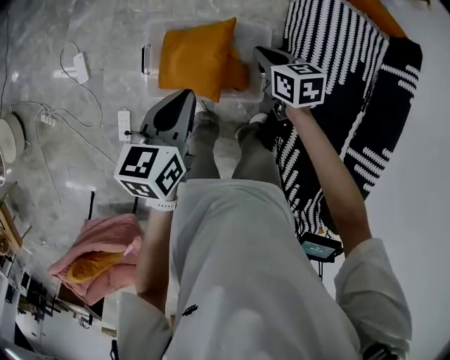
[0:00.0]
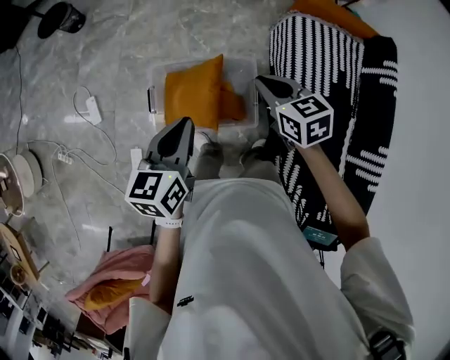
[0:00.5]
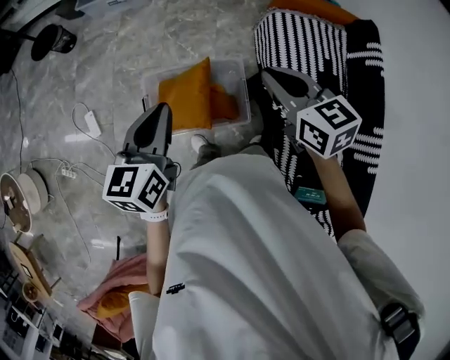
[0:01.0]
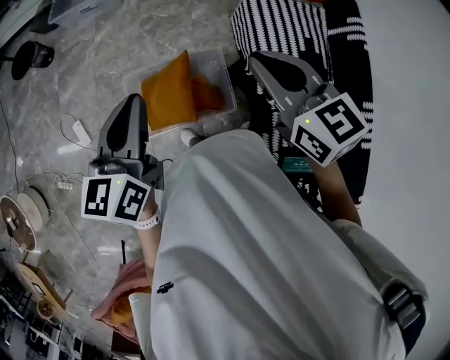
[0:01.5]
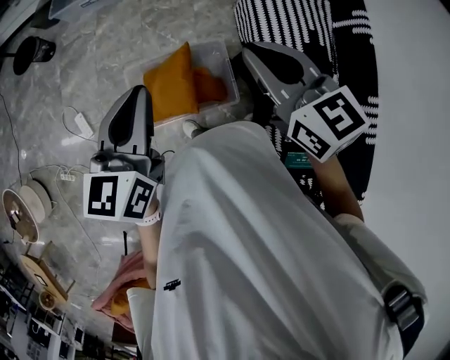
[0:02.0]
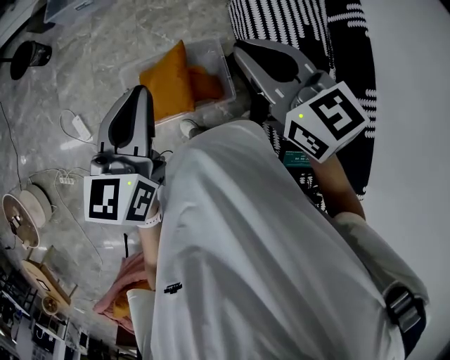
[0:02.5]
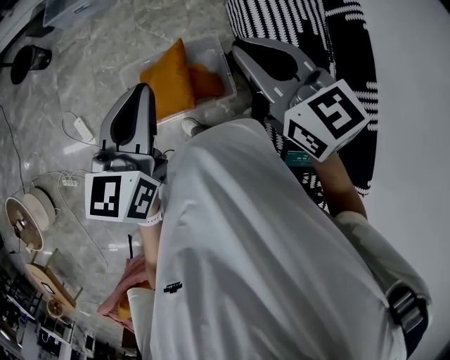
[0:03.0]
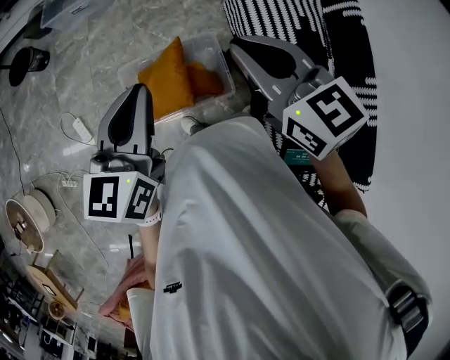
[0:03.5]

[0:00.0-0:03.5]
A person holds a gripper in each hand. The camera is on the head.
0:00.0 to 0:02.0: The left gripper goes about 25 cm upward, and turns by about 20 degrees. The right gripper is displaced upward by roughly 35 cm, and swivels approximately 30 degrees.
0:02.0 to 0:03.5: The right gripper is displaced backward by some 5 cm.

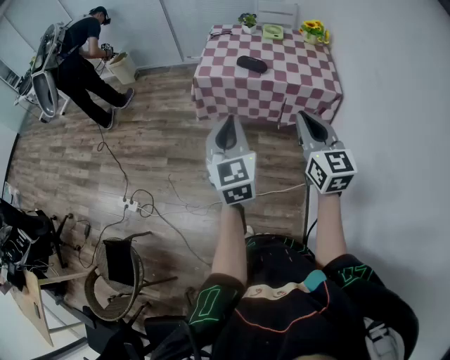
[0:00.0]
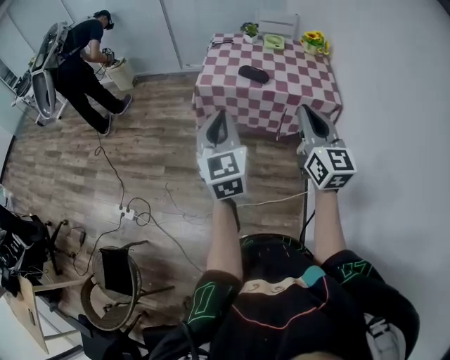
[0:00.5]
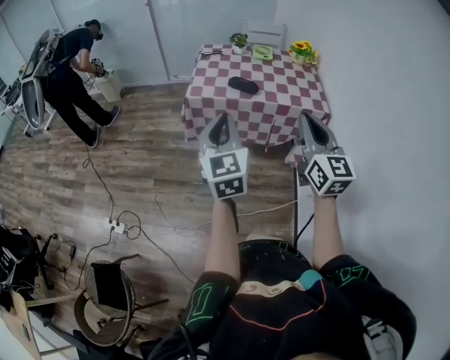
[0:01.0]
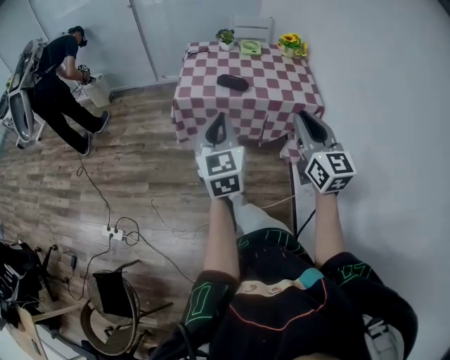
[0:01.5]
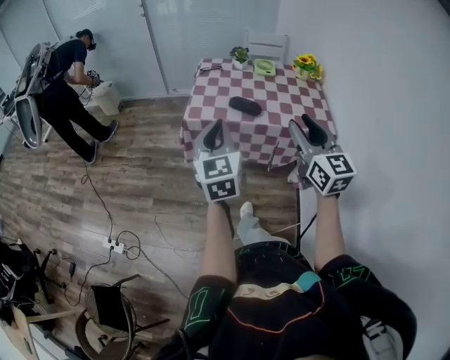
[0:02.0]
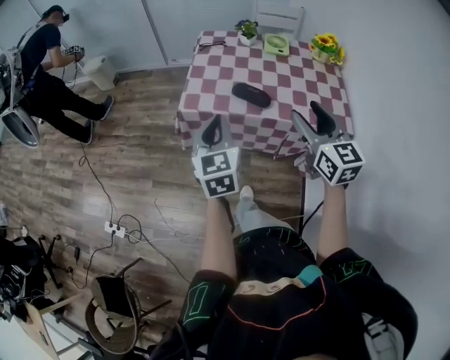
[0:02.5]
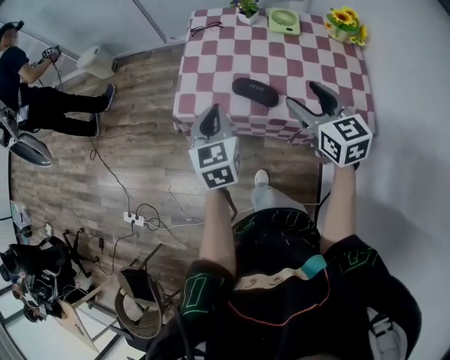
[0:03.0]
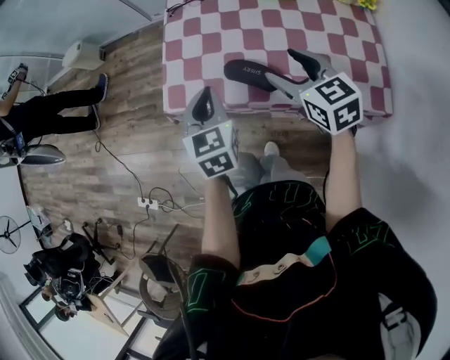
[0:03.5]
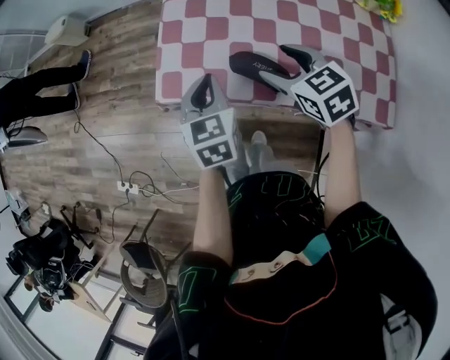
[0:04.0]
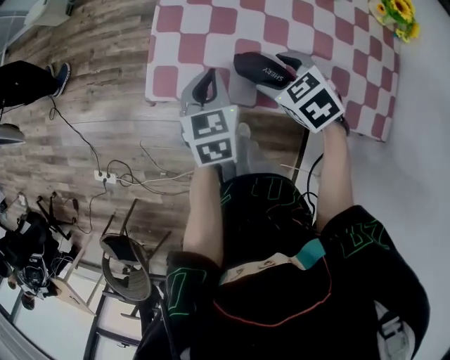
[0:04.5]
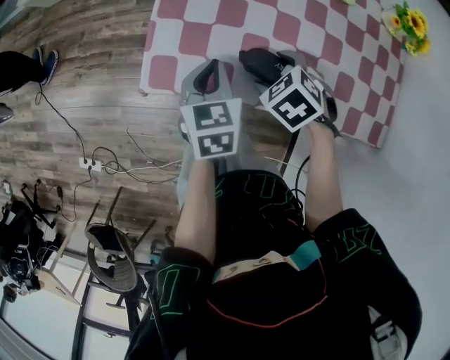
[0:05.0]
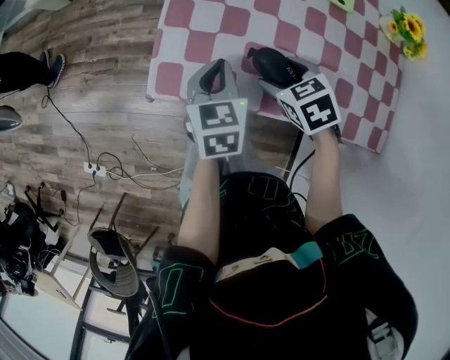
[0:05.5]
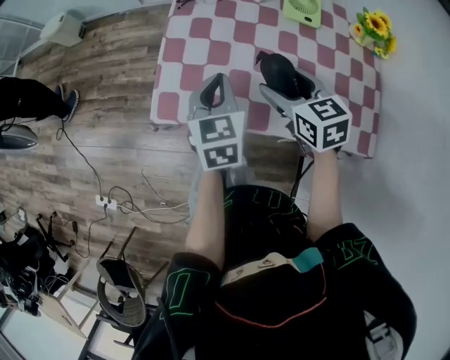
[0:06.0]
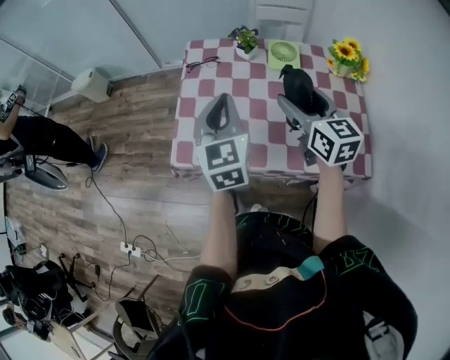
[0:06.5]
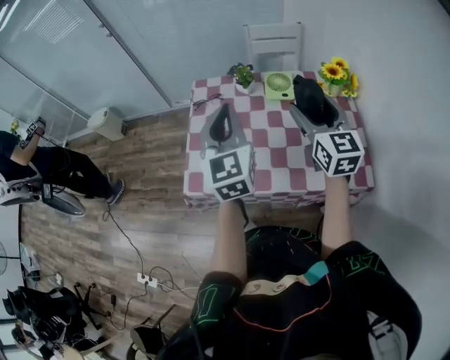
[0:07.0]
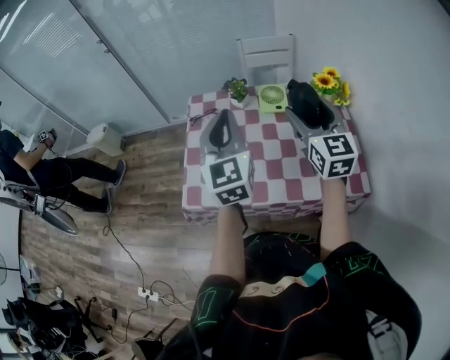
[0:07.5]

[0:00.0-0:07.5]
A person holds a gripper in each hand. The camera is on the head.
0:00.0 to 0:02.0: The two grippers go approximately 15 cm forward. The right gripper opens.
0:02.0 to 0:04.0: The grippers both shift forward and downward by some 40 cm. The left gripper changes its angle by about 30 degrees, while the right gripper tips its fingers downward by about 40 degrees, and opens.
0:04.0 to 0:05.5: The left gripper moves some 5 cm. The right gripper shifts some 10 cm downward, and turns by some 20 degrees.
0:05.5 to 0:07.5: The left gripper shifts roughly 30 cm upward, and tilts its fingers about 40 degrees upward. The right gripper is displaced upward and to the right by about 35 cm, and angles its fingers upward, by some 60 degrees.

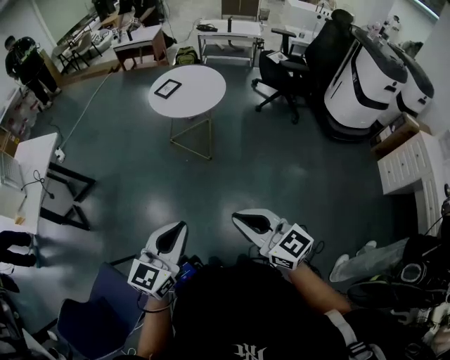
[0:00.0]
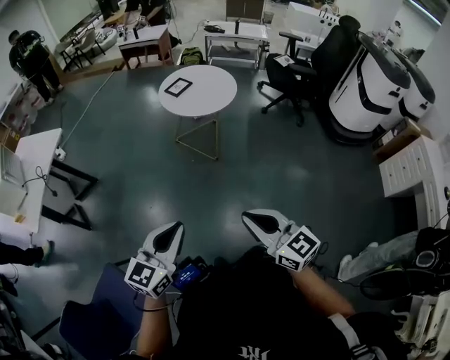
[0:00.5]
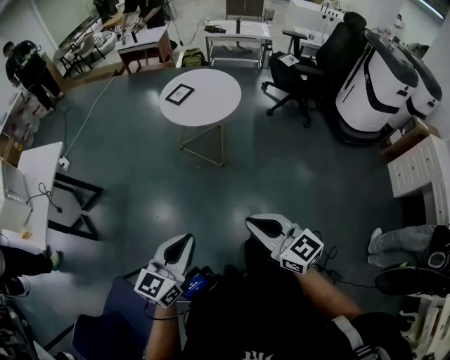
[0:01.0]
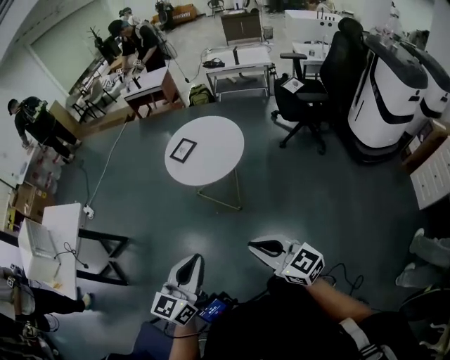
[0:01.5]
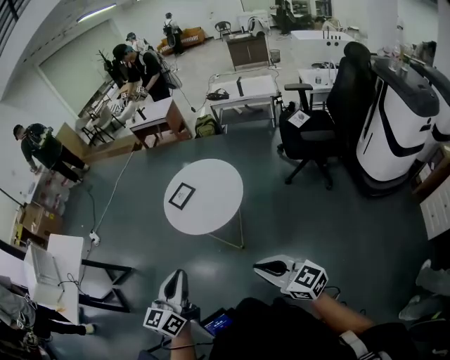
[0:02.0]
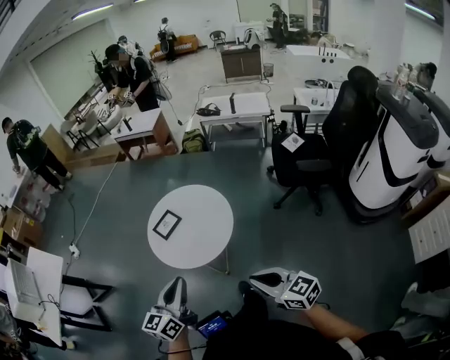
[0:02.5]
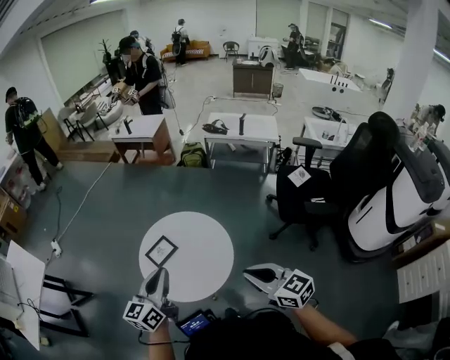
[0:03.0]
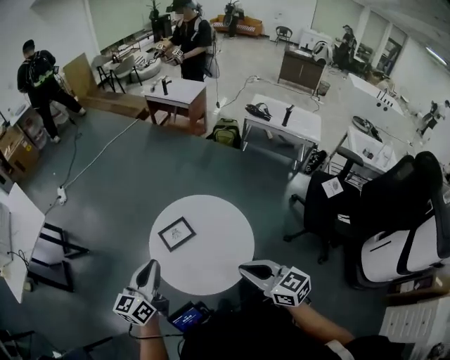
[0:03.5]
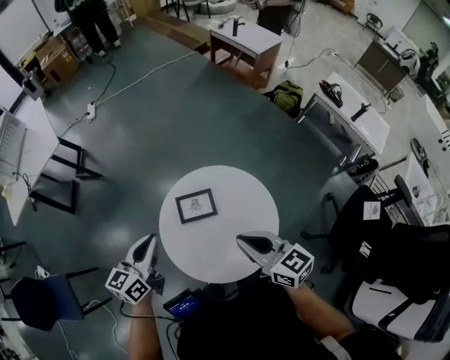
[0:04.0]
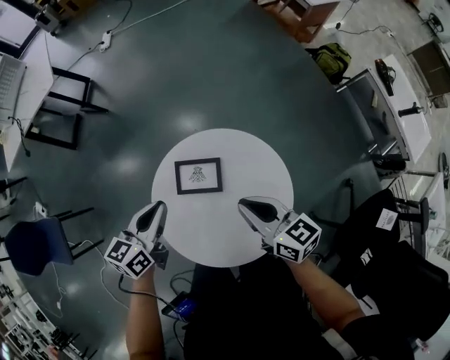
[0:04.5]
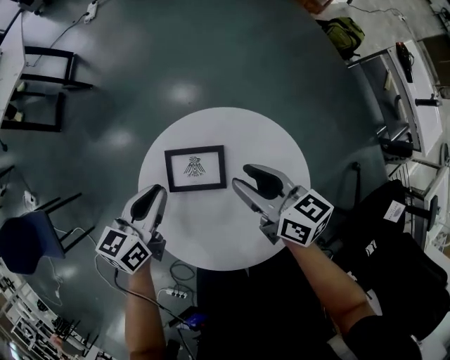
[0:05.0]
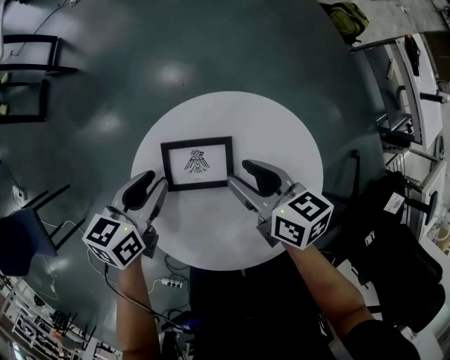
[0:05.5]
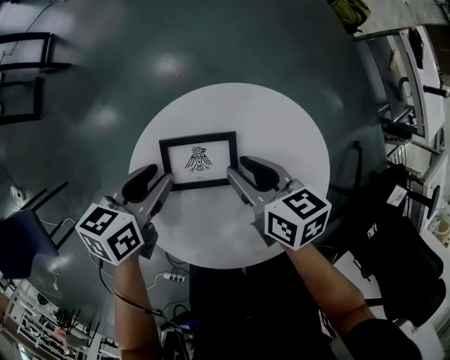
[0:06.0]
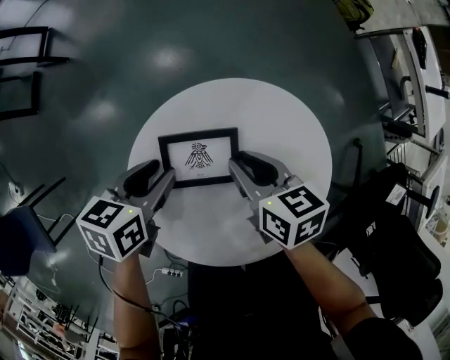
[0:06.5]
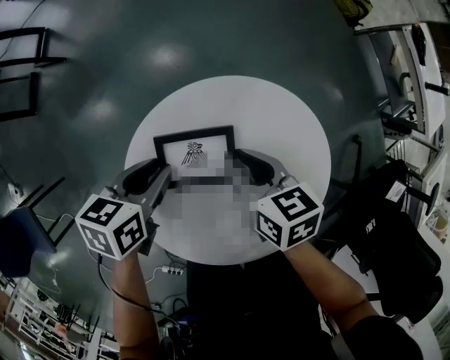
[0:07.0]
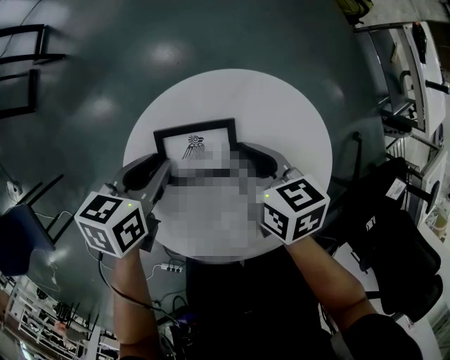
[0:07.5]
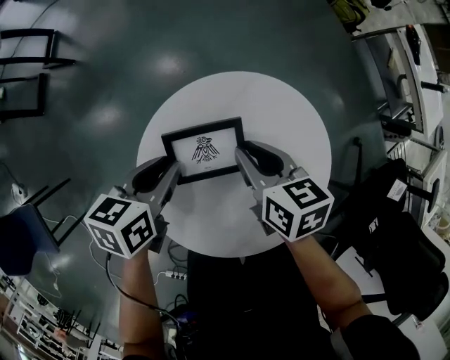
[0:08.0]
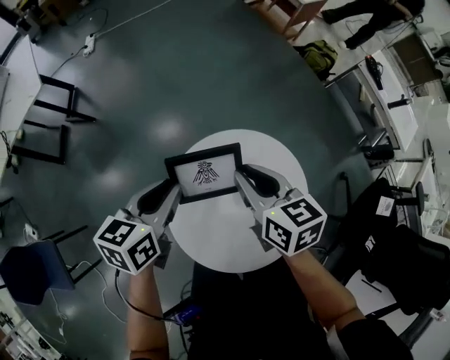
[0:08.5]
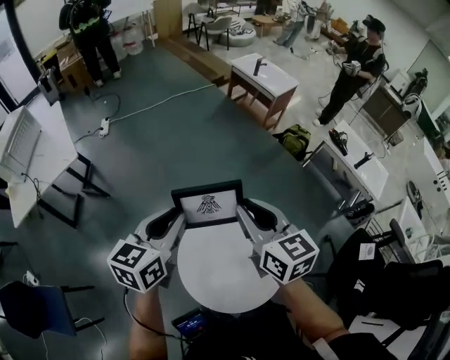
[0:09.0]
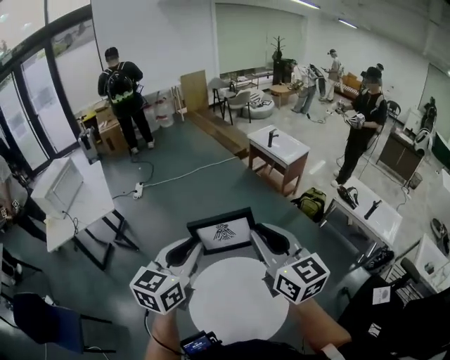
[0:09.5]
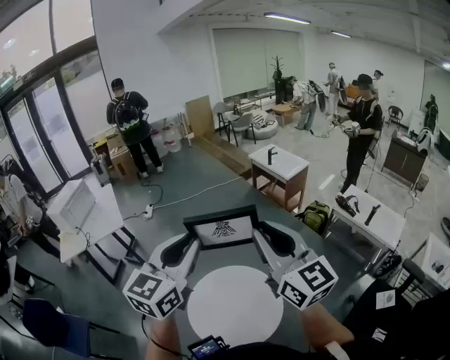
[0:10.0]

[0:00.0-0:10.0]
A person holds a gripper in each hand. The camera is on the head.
0:00.0 to 0:02.0: The right gripper heads forward and to the right, covering some 40 cm; the left gripper travels forward by approximately 40 cm.
0:02.0 to 0:04.0: Both grippers are carried about 50 cm. The left gripper changes its angle by approximately 40 degrees, while the right gripper rotates roughly 30 degrees.
0:04.0 to 0:06.0: The left gripper travels downward by about 30 cm, turns by about 30 degrees, and opens; the right gripper heads downward and forward, covering some 35 cm, changes its angle by approximately 30 degrees, and opens up.
0:06.0 to 0:08.0: The grippers stay close to where they were, moving slightly.
0:08.0 to 0:10.0: The two grippers go approximately 70 cm upward. The right gripper points its fingers some 60 degrees further upward. The left gripper tilts its fingers approximately 50 degrees upward.

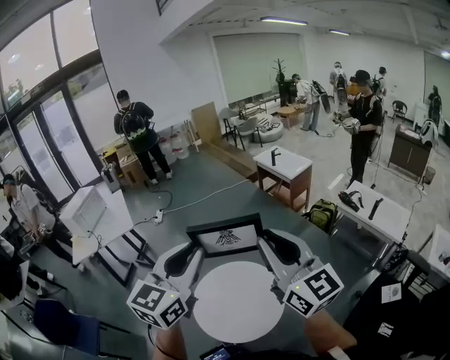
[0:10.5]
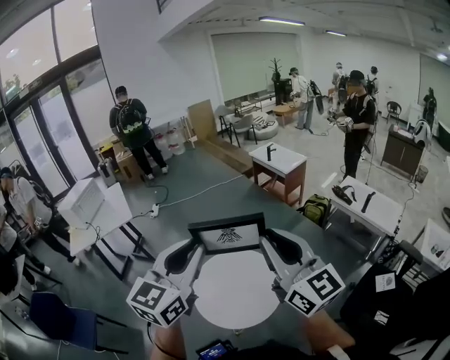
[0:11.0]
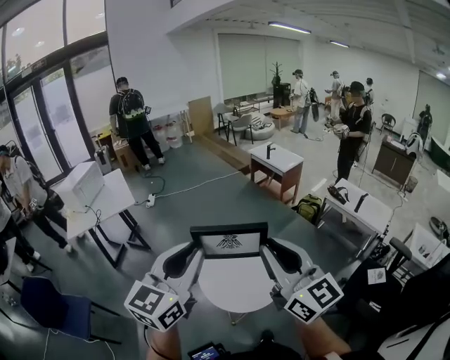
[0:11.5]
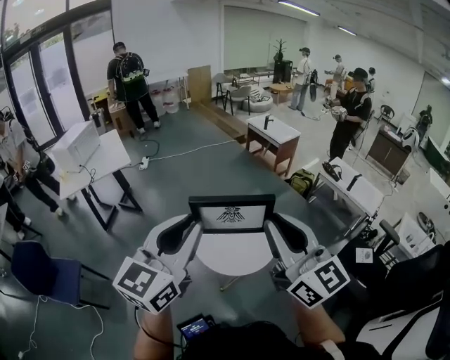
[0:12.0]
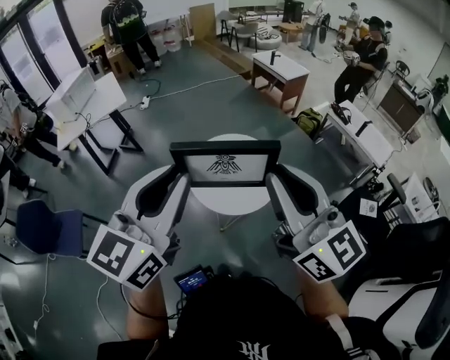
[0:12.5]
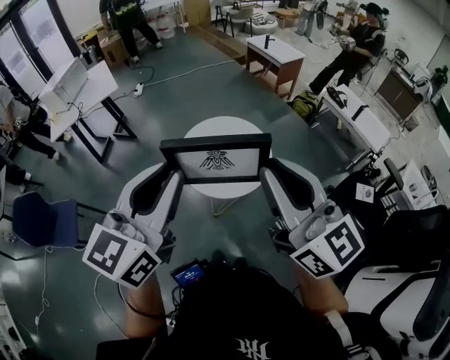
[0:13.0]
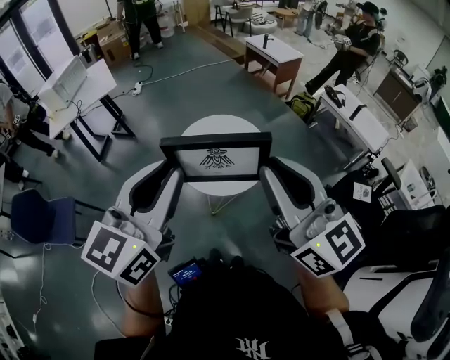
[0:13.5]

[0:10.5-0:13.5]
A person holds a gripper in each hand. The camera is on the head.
0:10.5 to 0:12.0: Both grippers travel together backward and to the left, roughly 30 cm.
0:12.0 to 0:13.5: The grippers both shift to the right, backward and downward by some 10 cm.

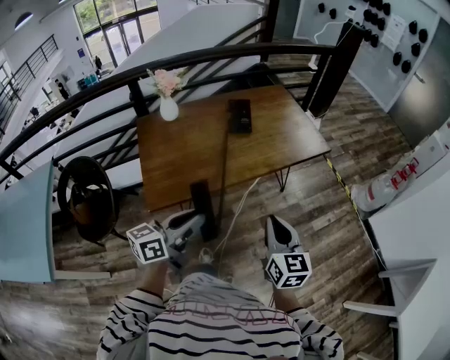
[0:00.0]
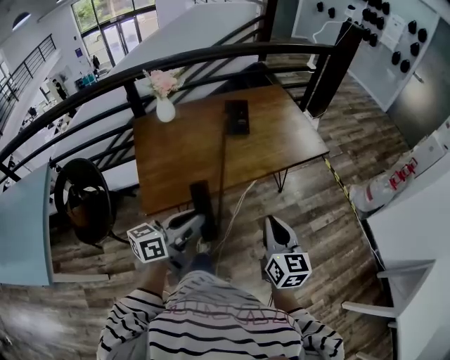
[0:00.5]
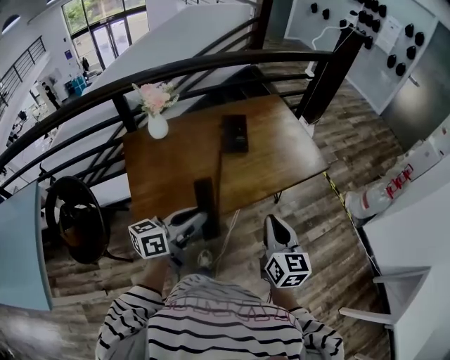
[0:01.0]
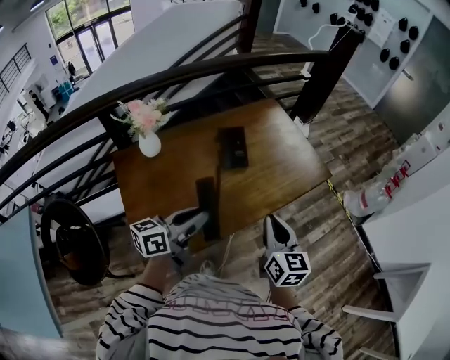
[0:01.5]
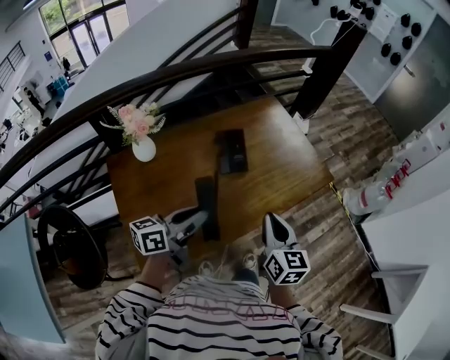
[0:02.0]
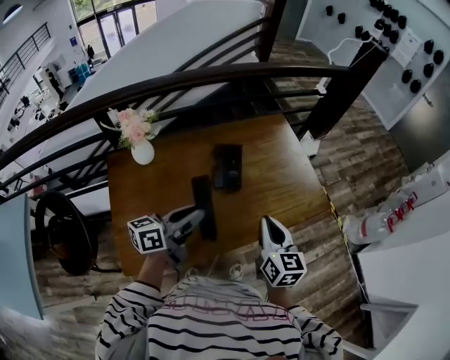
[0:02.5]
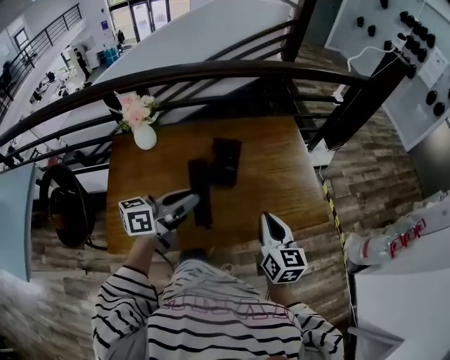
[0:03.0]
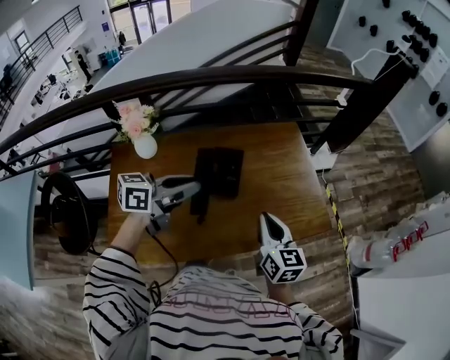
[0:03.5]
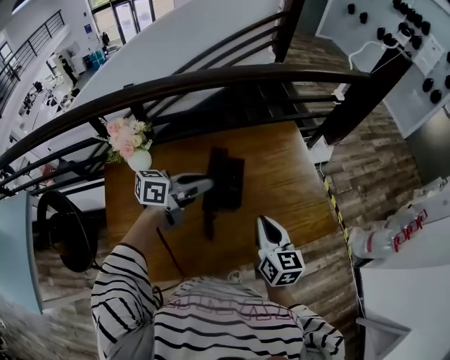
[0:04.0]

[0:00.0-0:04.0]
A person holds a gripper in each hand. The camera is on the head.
0:00.0 to 0:02.0: Both grippers travel together forward and to the left, approximately 40 cm.
0:02.0 to 0:04.0: The grippers both shift forward by some 25 cm.
